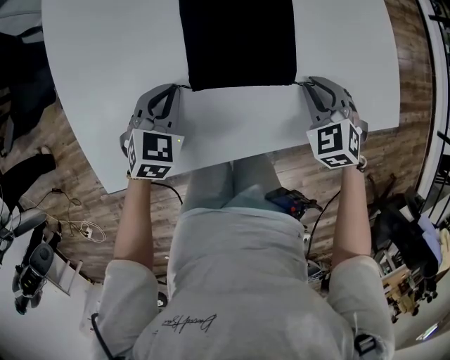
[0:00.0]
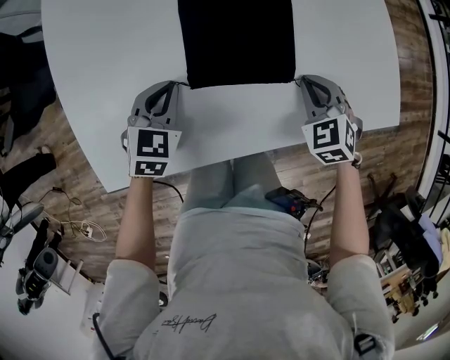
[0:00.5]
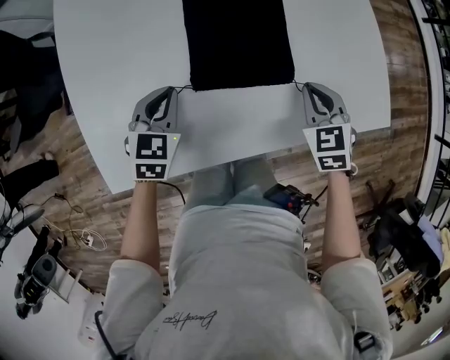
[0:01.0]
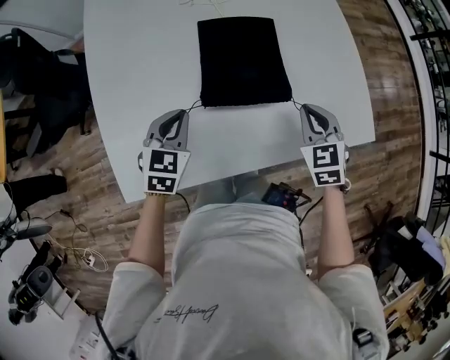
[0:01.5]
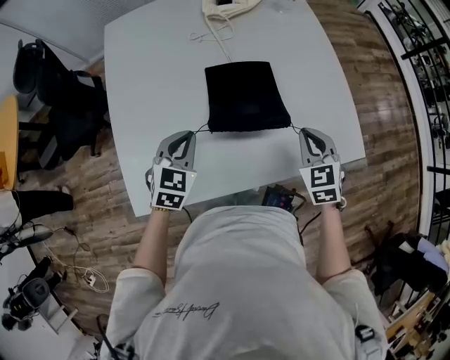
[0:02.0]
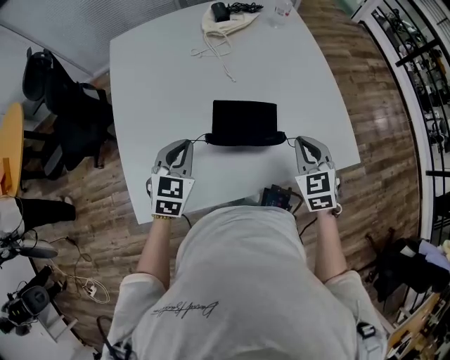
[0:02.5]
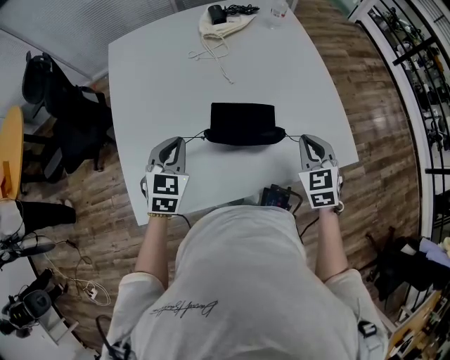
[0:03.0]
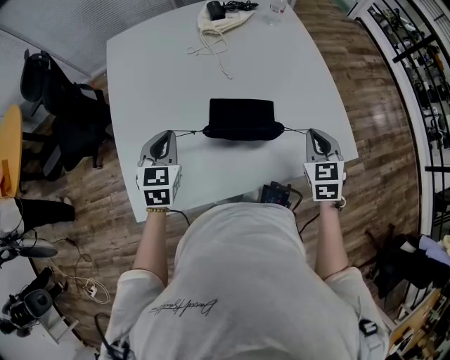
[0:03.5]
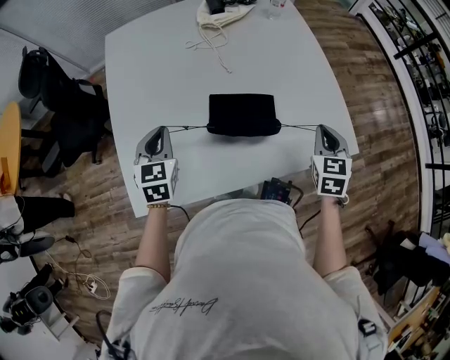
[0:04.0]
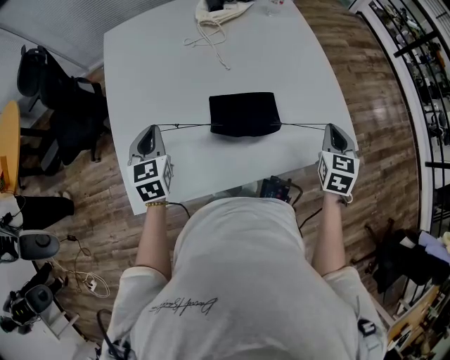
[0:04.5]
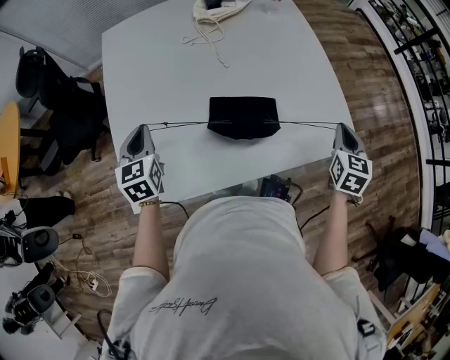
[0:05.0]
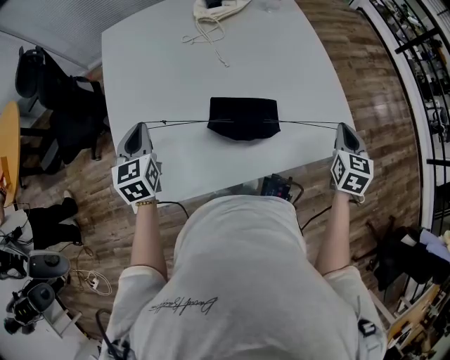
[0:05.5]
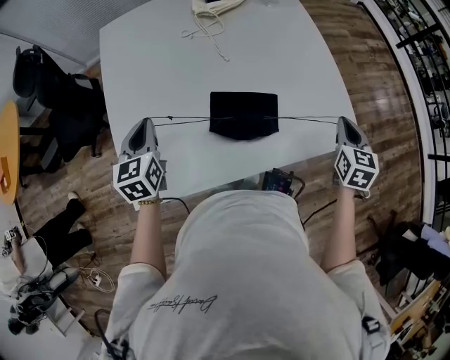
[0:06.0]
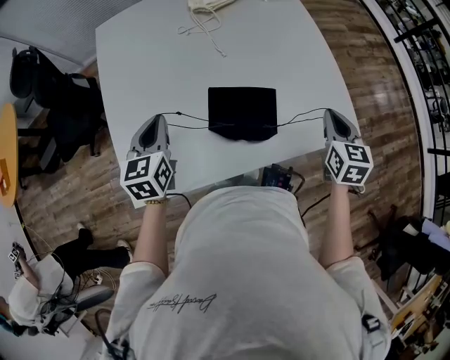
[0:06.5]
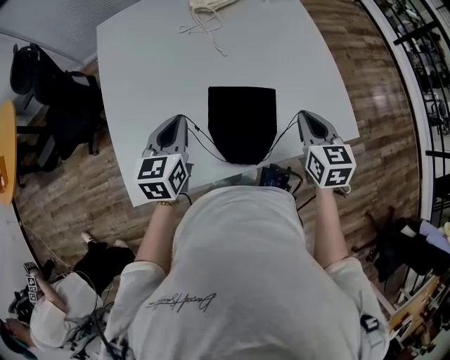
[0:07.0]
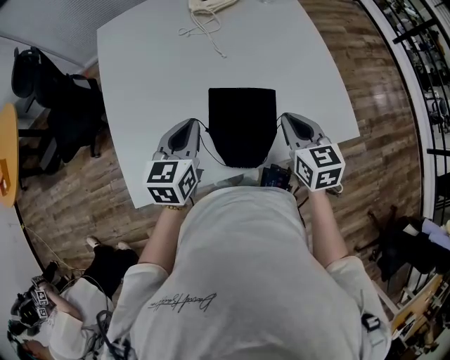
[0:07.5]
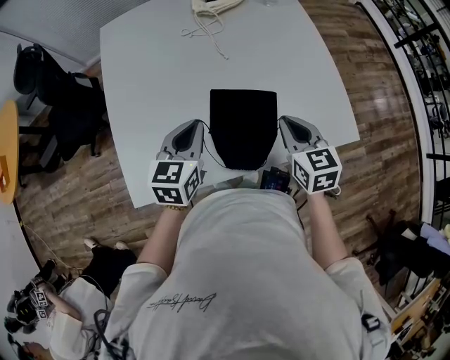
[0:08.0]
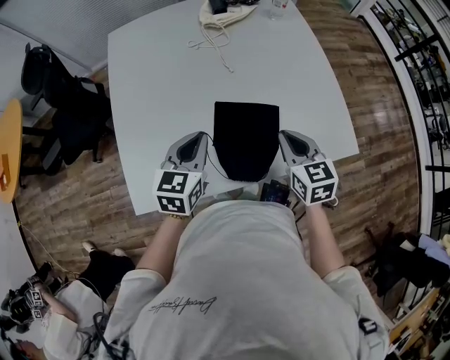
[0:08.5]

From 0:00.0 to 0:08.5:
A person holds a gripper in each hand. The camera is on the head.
From 0:00.0 to 0:02.0: Both grippers travel together upward, some 15 cm. The right gripper swivels approximately 30 degrees.
From 0:02.0 to 0:04.0: The left gripper heads to the left, covering approximately 5 cm, and swivels about 20 degrees. Meanwhile the right gripper goes roughly 10 cm to the right, and turns by roughly 20 degrees.
From 0:06.5 to 0:08.5: The left gripper heads to the right, covering approximately 10 cm, while the right gripper is displaced to the left by roughly 15 cm.

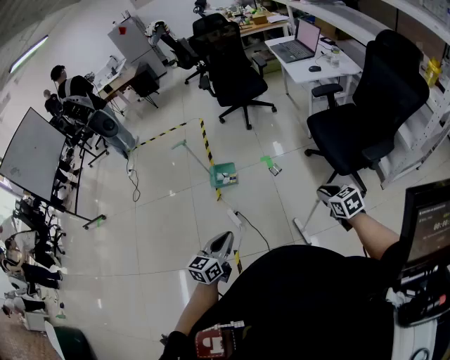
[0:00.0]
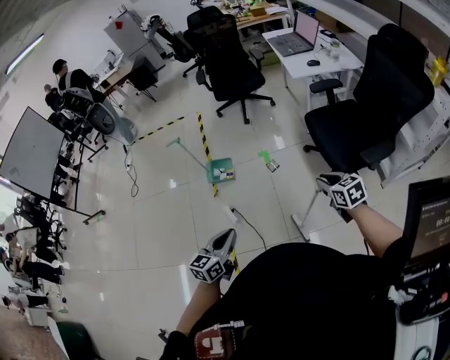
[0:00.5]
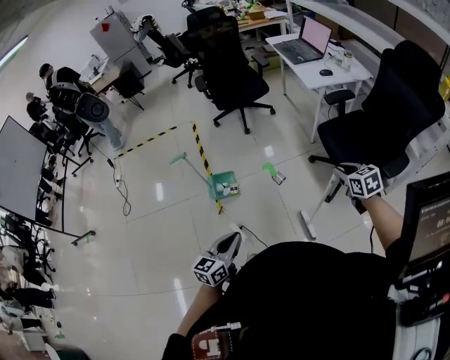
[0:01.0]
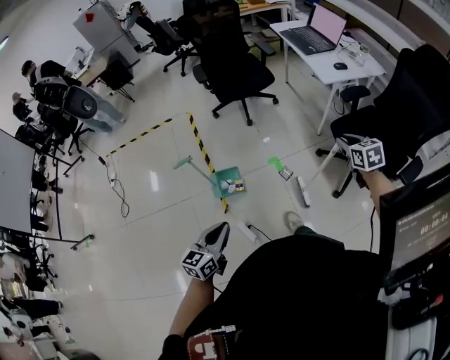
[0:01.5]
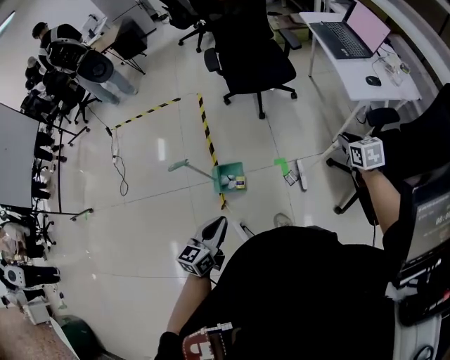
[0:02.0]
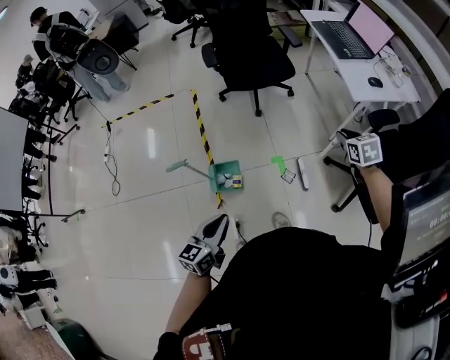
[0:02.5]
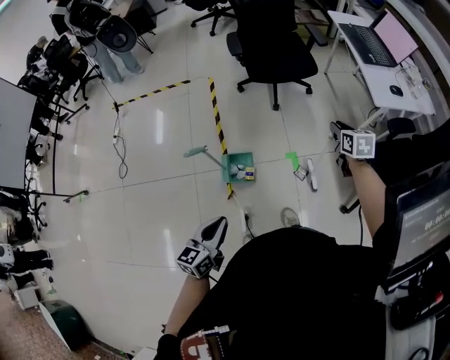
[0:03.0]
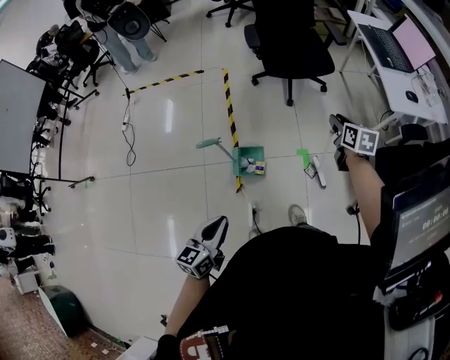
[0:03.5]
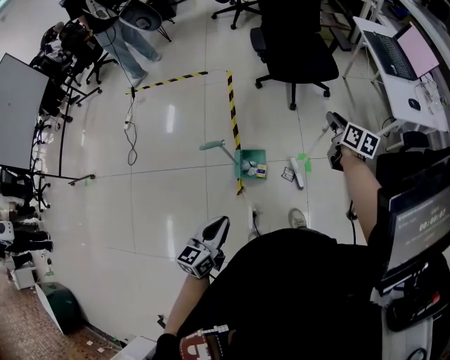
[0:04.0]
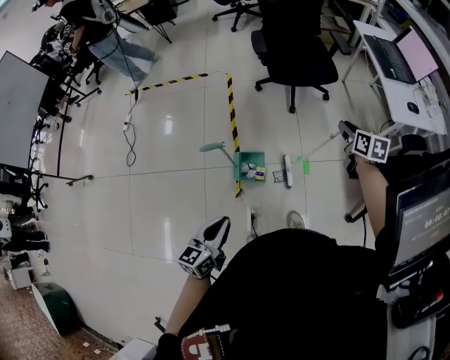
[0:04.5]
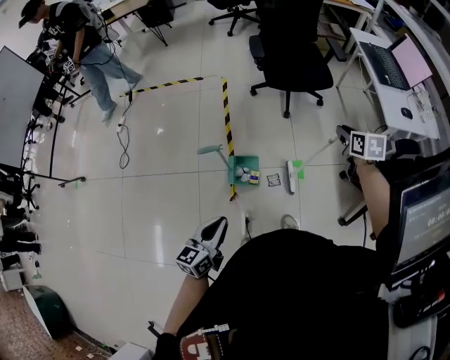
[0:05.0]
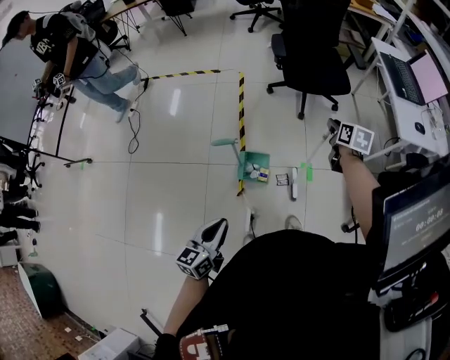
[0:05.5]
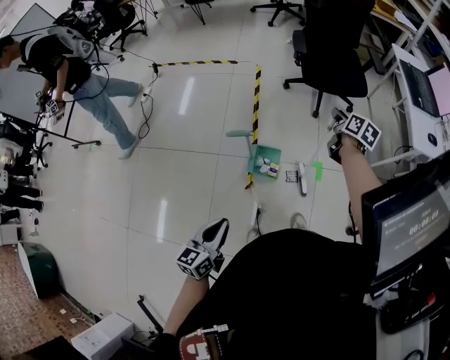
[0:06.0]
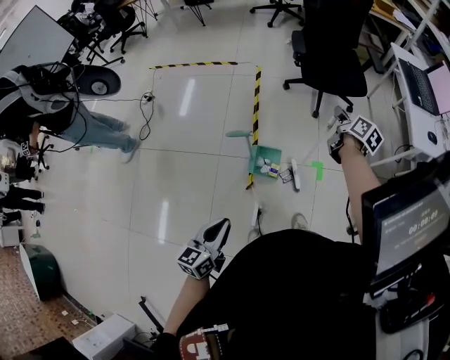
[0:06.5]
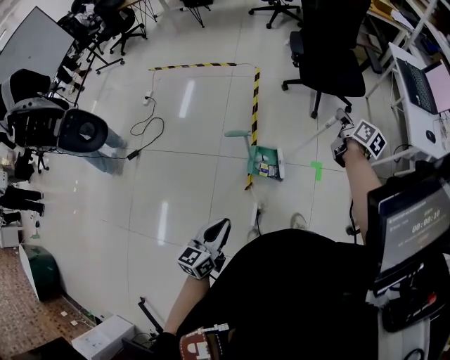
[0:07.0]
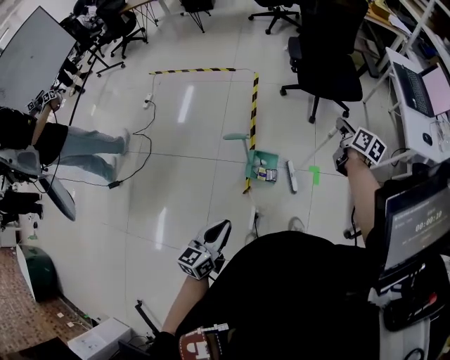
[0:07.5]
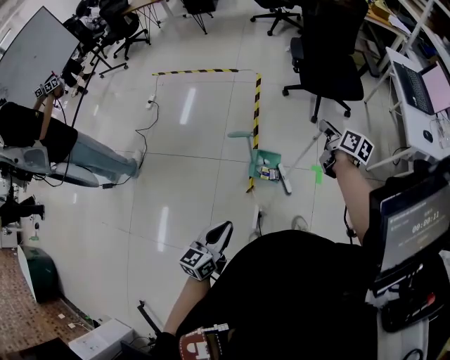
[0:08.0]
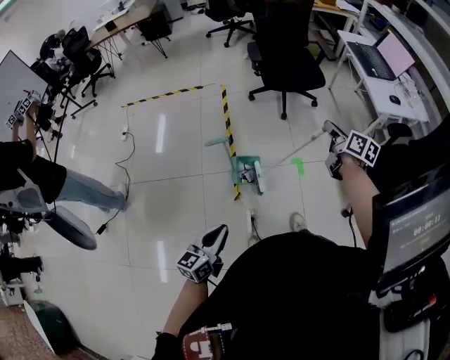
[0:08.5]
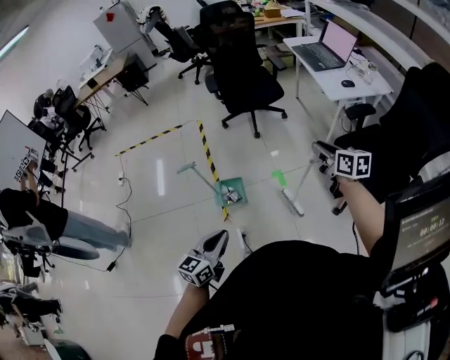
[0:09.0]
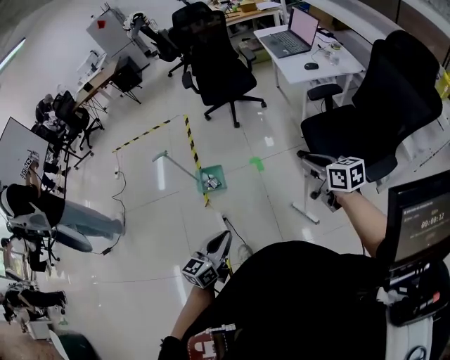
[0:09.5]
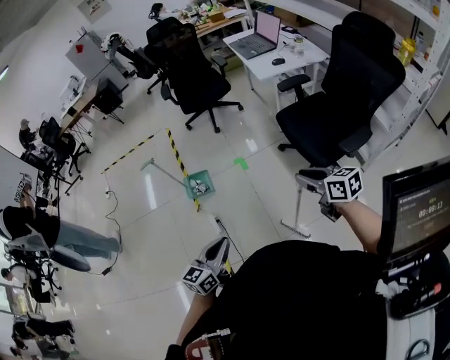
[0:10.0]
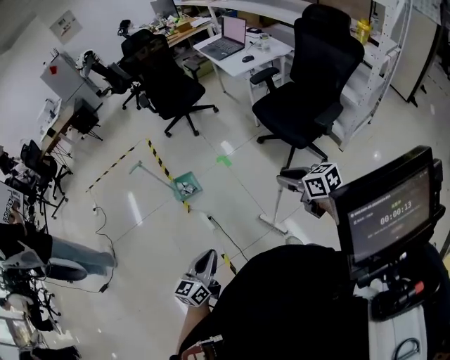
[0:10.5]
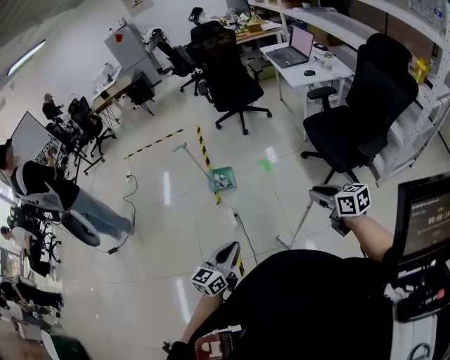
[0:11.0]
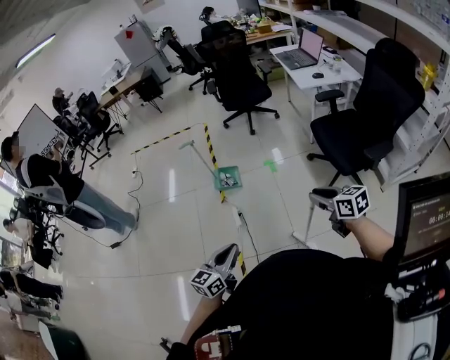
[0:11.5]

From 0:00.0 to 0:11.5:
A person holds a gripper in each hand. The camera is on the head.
From 0:00.0 to 0:02.0: Both grippers are carried forward, approximately 50 cm.
From 0:02.0 to 0:04.0: The left gripper heads to the left, covering approximately 15 cm, while the right gripper heads to the left, covering some 25 cm, and rotates roughly 30 degrees.
From 0:04.0 to 0:06.0: The left gripper heads to the left and backward, covering approximately 10 cm. The right gripper heads to the left, covering roughly 10 cm.
From 0:06.0 to 0:07.5: The right gripper shifts by roughly 5 cm.
From 0:07.5 to 0:09.5: The pair of grippers is taken to the right and backward, some 50 cm. The left gripper turns by approximately 20 degrees.
From 0:09.5 to 0:11.5: Both grippers move backward, some 25 cm.

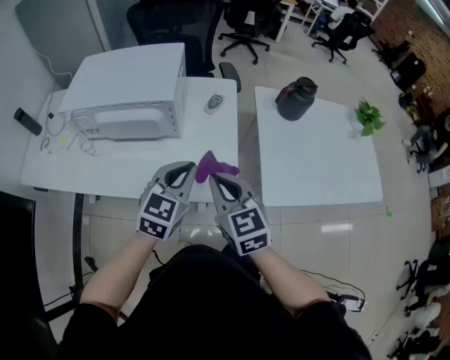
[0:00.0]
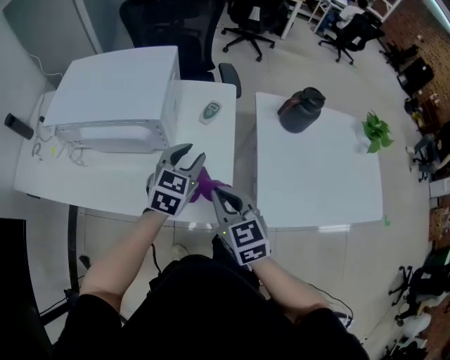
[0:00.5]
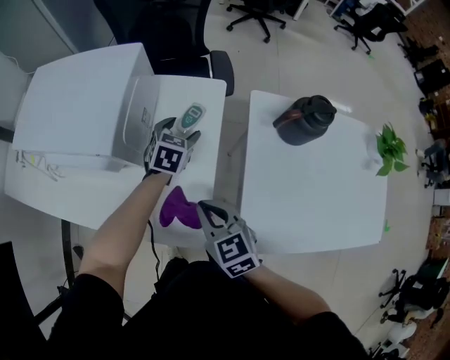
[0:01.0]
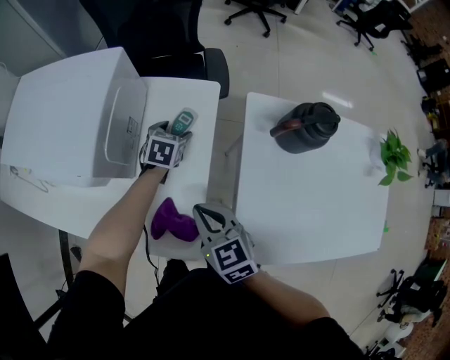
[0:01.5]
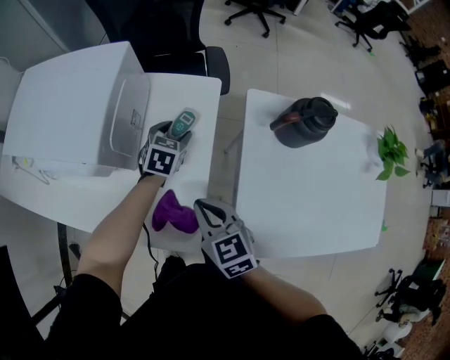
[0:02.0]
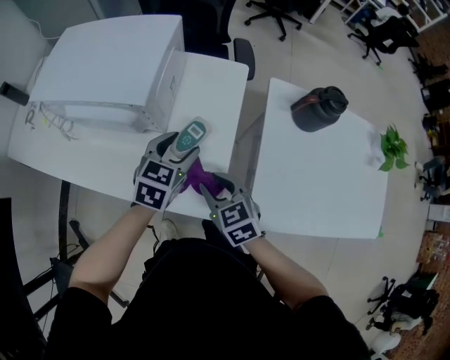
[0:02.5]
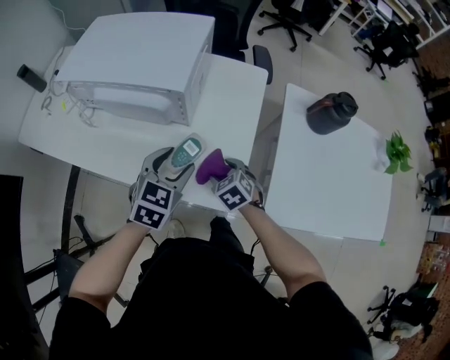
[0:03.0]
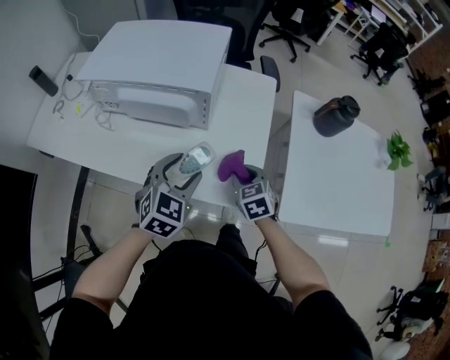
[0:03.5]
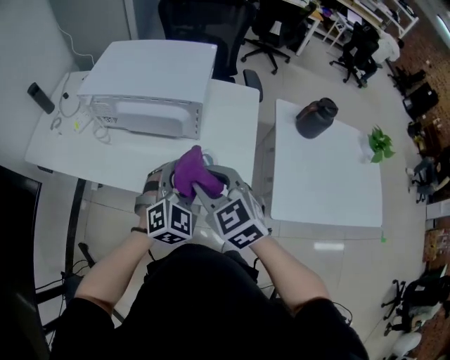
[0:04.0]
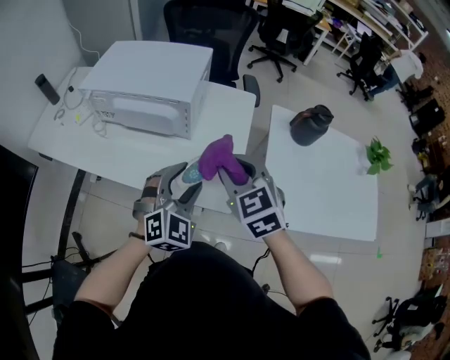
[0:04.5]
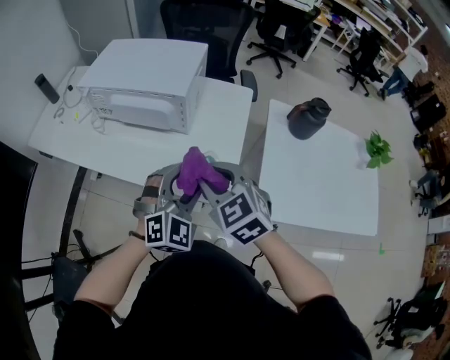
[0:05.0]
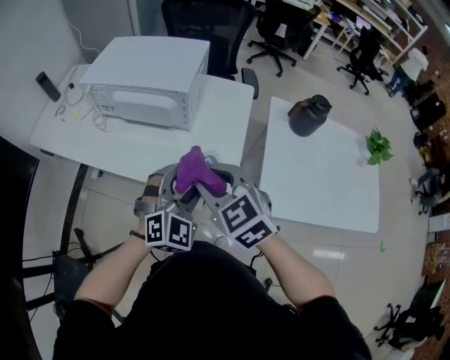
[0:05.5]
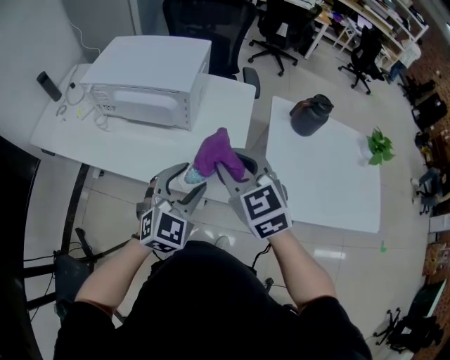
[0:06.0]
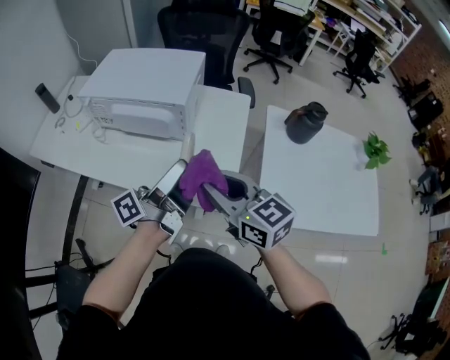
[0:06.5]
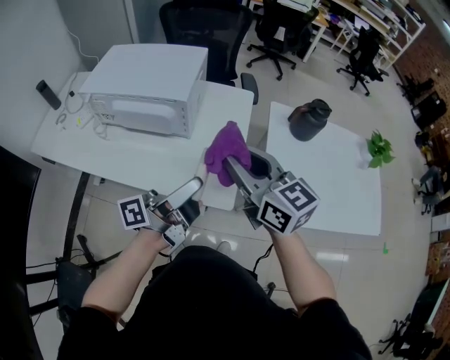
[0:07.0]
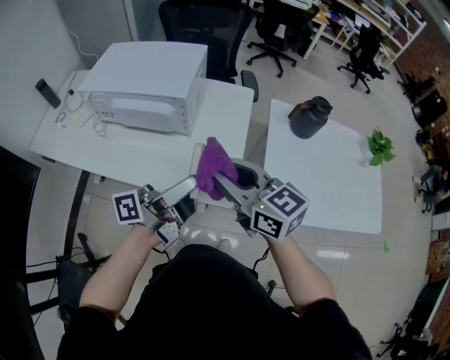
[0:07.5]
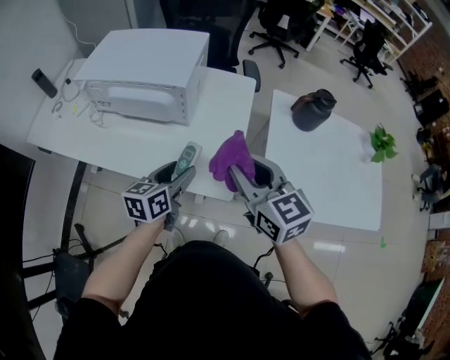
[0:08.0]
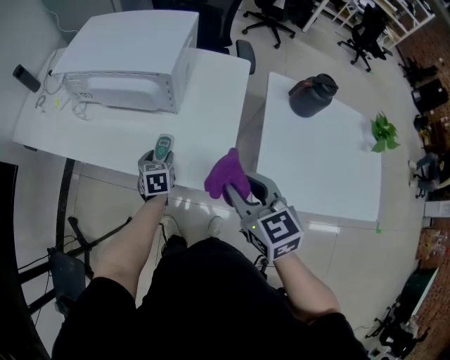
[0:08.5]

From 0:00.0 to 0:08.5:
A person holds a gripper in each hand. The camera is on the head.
From 0:00.0 to 0:02.0: The left gripper heads forward and downward, covering about 40 cm, turns by some 30 degrees, and opens its fingers. The right gripper travels forward, downward and to the right by about 20 cm.
From 0:02.0 to 0:04.0: The right gripper moves to the left, upward and backward, some 30 cm, swivels about 20 degrees, and opens up. The left gripper goes about 40 cm backward, to the left and upward, and changes its angle by approximately 40 degrees.
From 0:04.0 to 0:06.5: The left gripper goes roughly 10 cm upward, and rolls counterclockwise, seen from behind, by roughly 100 degrees, while the right gripper moves left and right over about 10 cm, changing direction 2 times, and turns by roughly 30 degrees.
From 0:06.5 to 0:08.5: The left gripper travels downward by about 30 cm, and points its fingers about 70 degrees further downward, while the right gripper moves downward and to the right, roughly 10 cm, and changes its angle by some 20 degrees.
